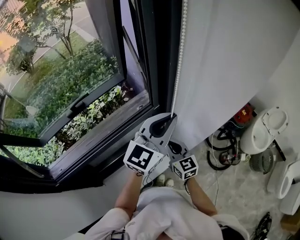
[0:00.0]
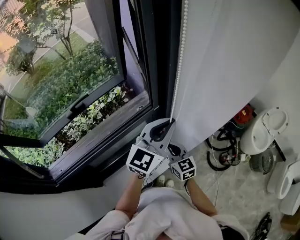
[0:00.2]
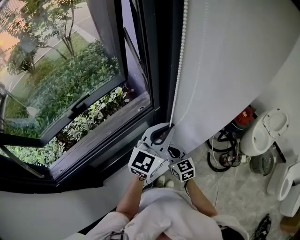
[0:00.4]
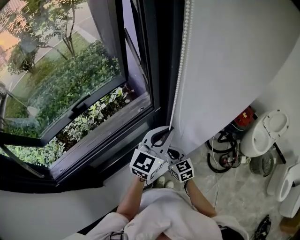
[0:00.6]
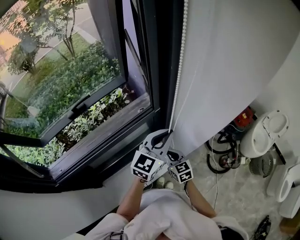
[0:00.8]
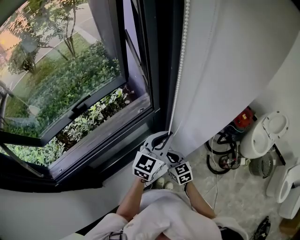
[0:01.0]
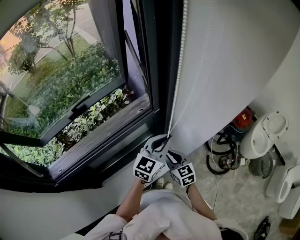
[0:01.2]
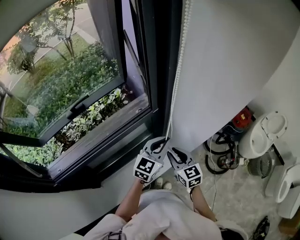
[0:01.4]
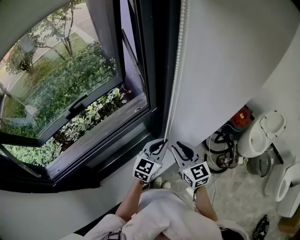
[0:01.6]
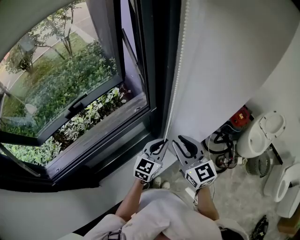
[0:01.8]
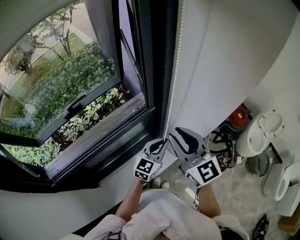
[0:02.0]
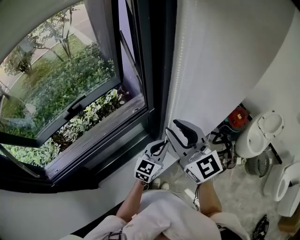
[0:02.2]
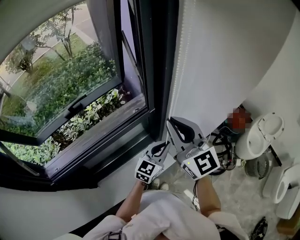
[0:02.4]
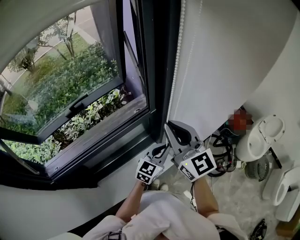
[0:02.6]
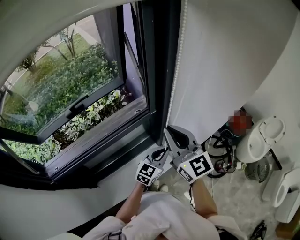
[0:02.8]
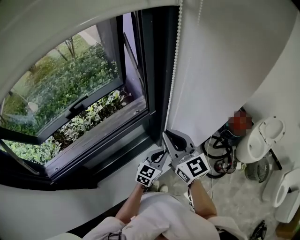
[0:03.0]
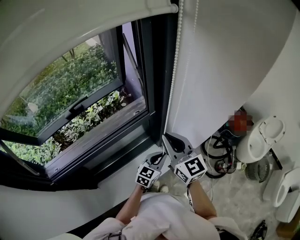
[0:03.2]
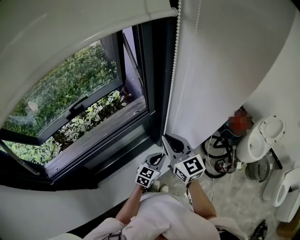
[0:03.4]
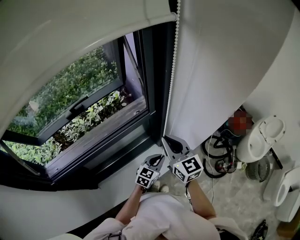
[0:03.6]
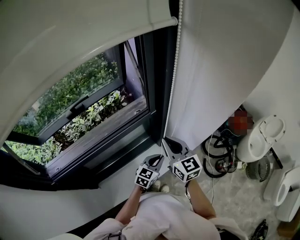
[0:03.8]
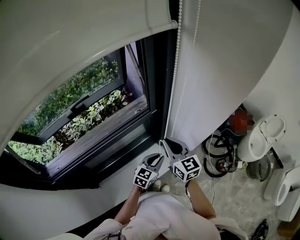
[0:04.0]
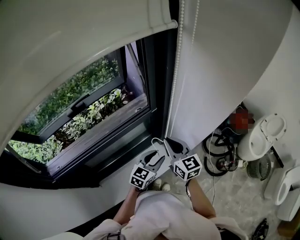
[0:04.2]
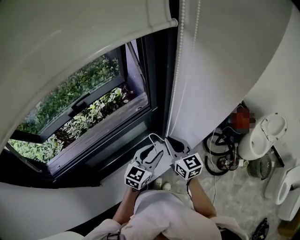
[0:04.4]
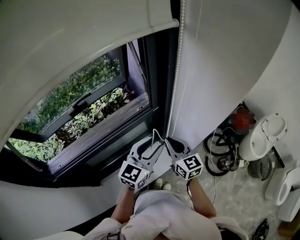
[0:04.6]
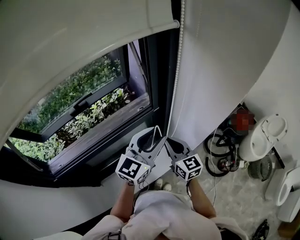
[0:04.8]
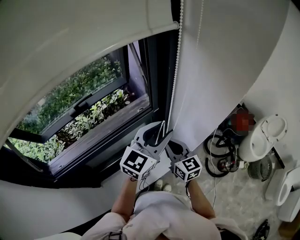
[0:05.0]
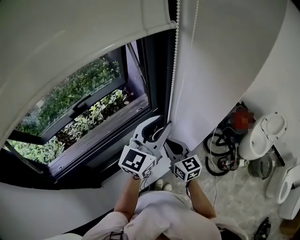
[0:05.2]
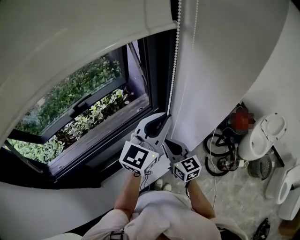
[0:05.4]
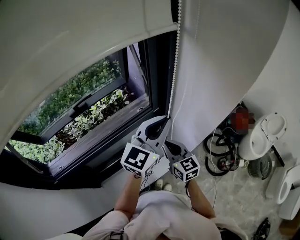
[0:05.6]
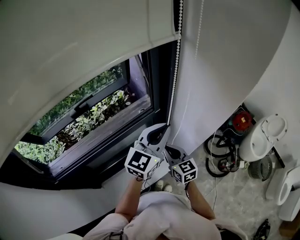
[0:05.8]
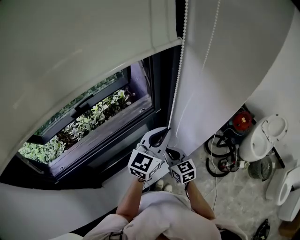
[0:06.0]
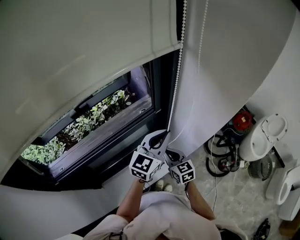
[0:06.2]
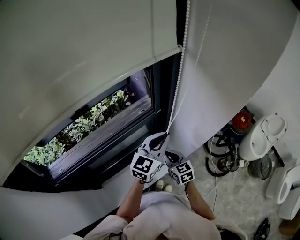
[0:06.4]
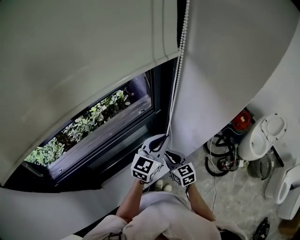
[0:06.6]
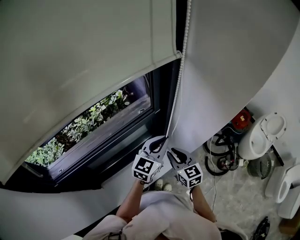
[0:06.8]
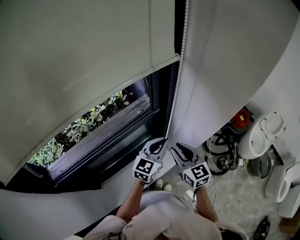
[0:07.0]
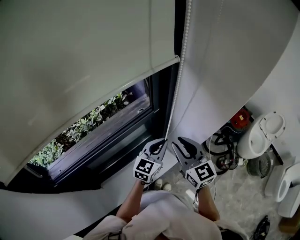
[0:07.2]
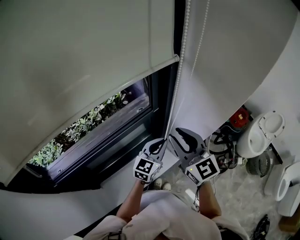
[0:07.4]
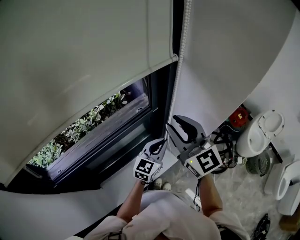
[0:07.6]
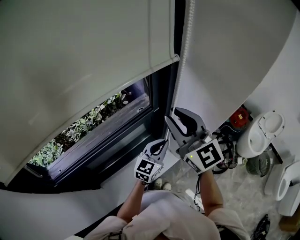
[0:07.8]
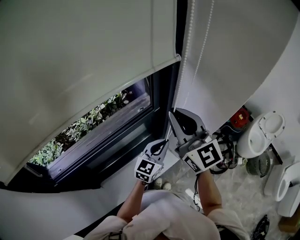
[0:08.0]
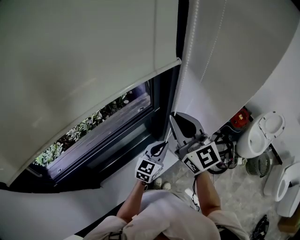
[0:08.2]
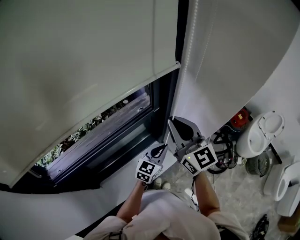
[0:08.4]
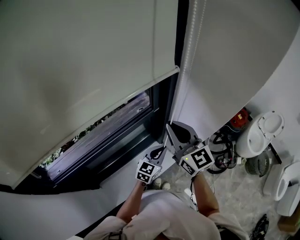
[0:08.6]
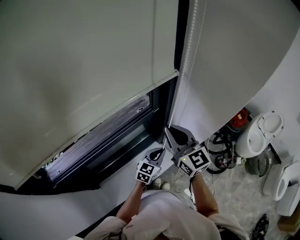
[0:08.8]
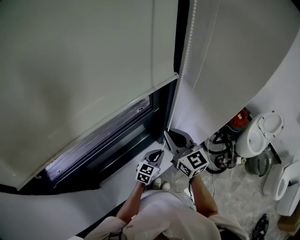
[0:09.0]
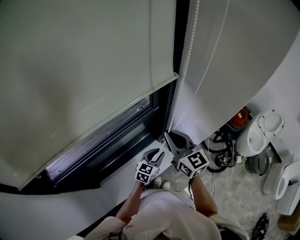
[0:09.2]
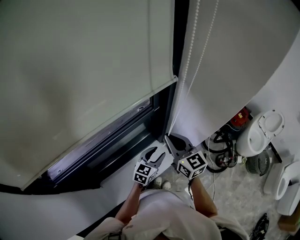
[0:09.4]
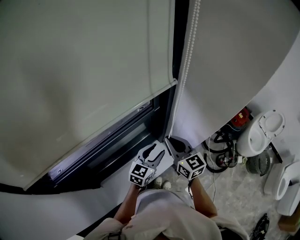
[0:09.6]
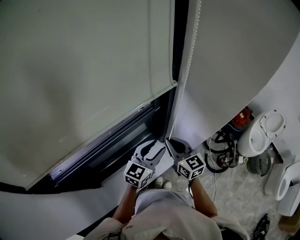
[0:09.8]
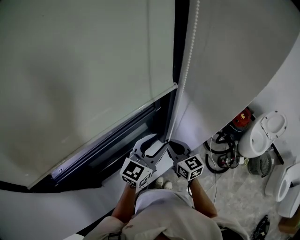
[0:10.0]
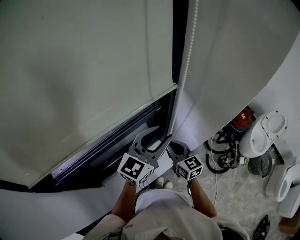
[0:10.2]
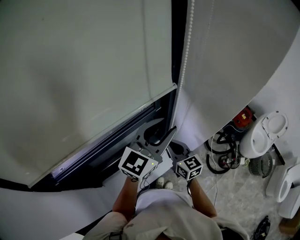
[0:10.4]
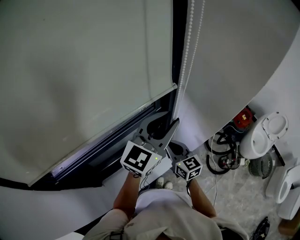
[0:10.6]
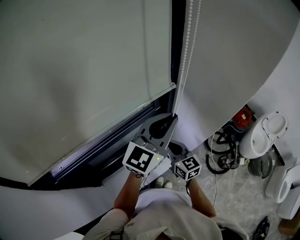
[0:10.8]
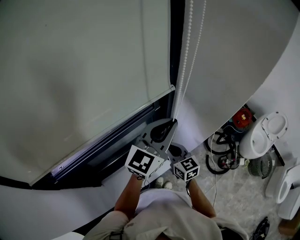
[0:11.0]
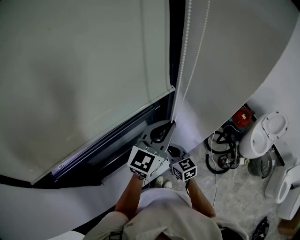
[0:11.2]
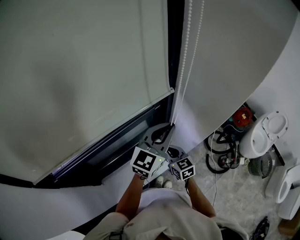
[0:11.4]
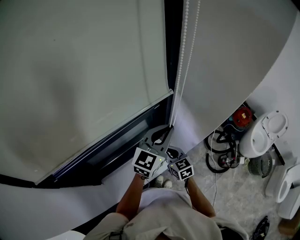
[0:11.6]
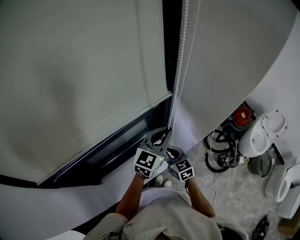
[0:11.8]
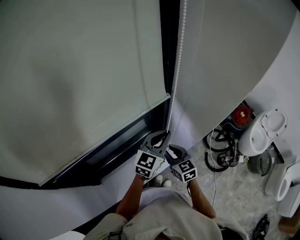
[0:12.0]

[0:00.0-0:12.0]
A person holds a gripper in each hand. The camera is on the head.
0:00.0 to 0:01.6: The right gripper goes some 5 cm to the right, goes downward and returns, approximately 10 cm each way, and opens. Meanwhile the left gripper shifts roughly 20 cm downward.
0:01.6 to 0:03.0: The right gripper goes approximately 10 cm upward, and closes. The left gripper moves downward, about 5 cm.
0:03.0 to 0:04.4: The left gripper moves upward, approximately 5 cm, and opens up. Meanwhile the right gripper shifts some 10 cm downward.
0:04.4 to 0:06.0: The left gripper moves upward and forward, some 15 cm, and closes up, while the right gripper goes some 10 cm downward.
0:06.0 to 0:07.6: The right gripper is displaced upward by approximately 25 cm, rotates some 30 degrees, and opens its fingers, while the left gripper is displaced downward by roughly 10 cm.
0:07.6 to 0:09.0: Both grippers travel together downward, about 10 cm. The right gripper closes its fingers.
0:09.0 to 0:10.4: The left gripper heads upward, covering about 30 cm, rotates roughly 30 degrees, and opens its fingers. Meanwhile the right gripper heads downward, covering approximately 10 cm.
0:10.4 to 0:12.0: The left gripper heads downward, covering approximately 10 cm, and closes its fingers. Meanwhile the right gripper moves downward, roughly 5 cm, and opens.

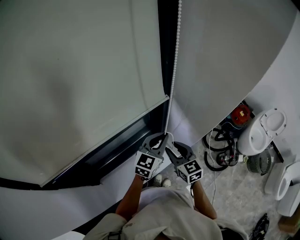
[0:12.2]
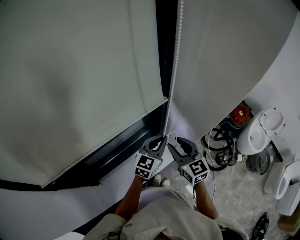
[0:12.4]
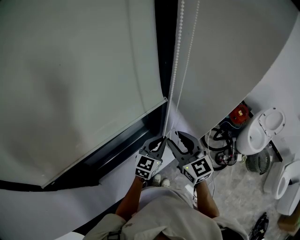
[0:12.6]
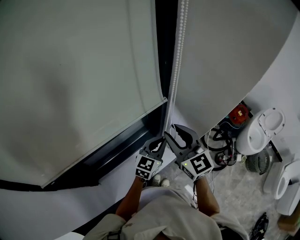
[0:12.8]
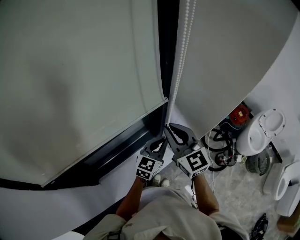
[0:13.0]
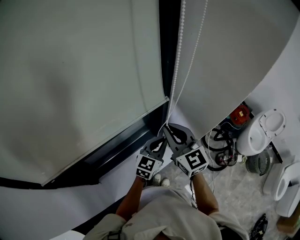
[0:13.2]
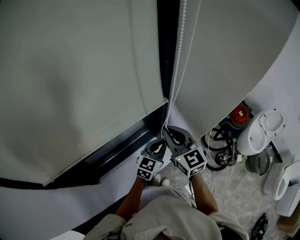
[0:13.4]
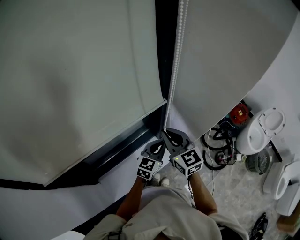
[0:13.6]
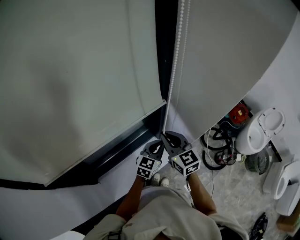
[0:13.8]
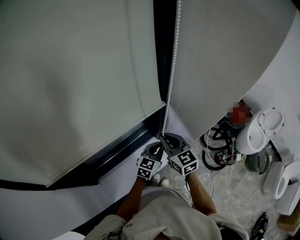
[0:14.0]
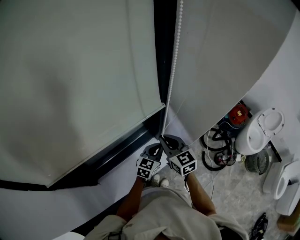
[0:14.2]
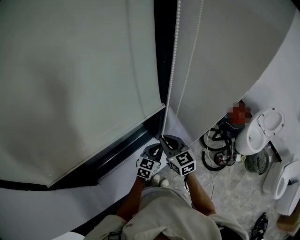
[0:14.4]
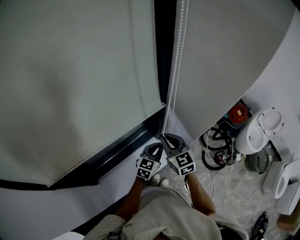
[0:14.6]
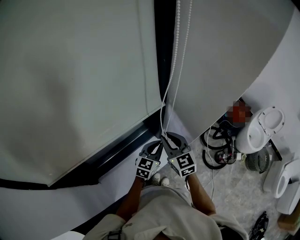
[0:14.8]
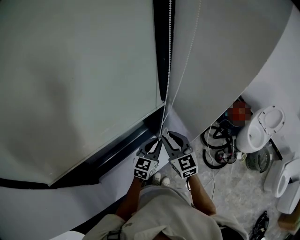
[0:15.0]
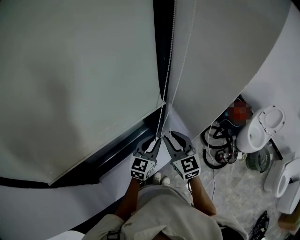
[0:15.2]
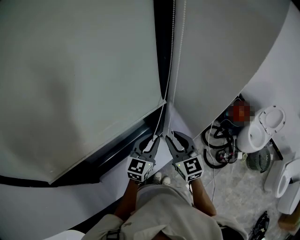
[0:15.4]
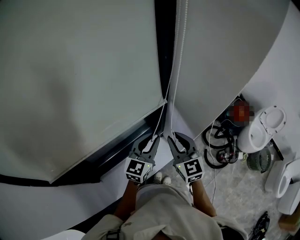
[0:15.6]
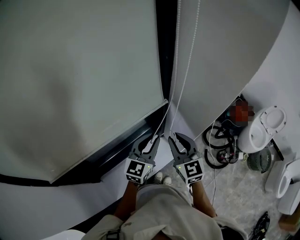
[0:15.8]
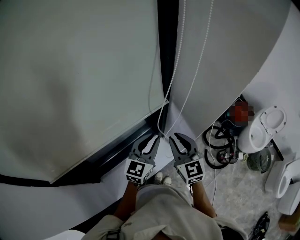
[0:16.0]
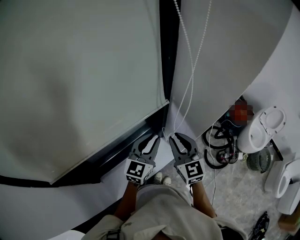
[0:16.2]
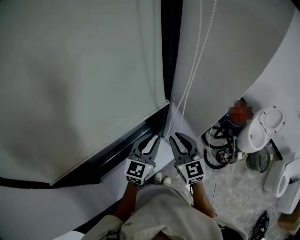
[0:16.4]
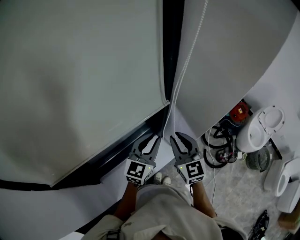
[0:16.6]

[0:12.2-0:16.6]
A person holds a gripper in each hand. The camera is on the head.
0:12.2 to 0:13.6: The left gripper goes about 5 cm downward. The right gripper shifts some 10 cm upward, and closes its fingers.
0:13.6 to 0:15.2: The left gripper reaches some 5 cm downward, then returns; the right gripper opens.
0:15.2 to 0:16.6: The left gripper moves upward, some 5 cm.

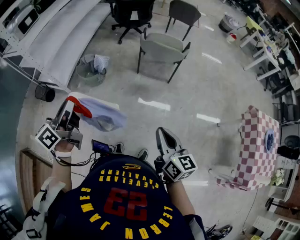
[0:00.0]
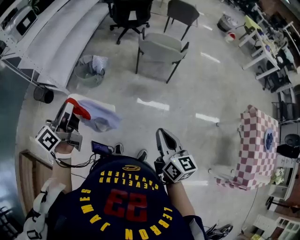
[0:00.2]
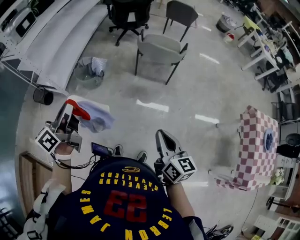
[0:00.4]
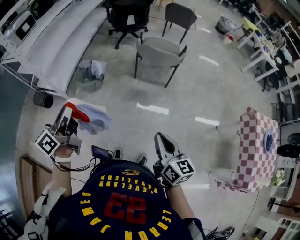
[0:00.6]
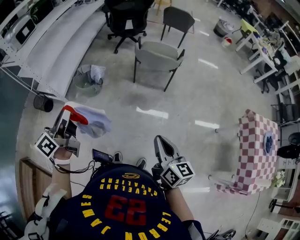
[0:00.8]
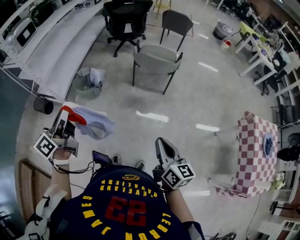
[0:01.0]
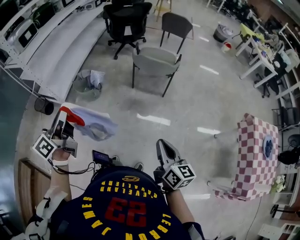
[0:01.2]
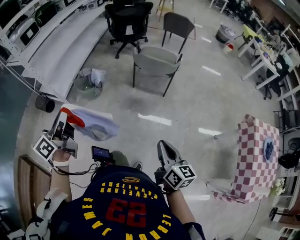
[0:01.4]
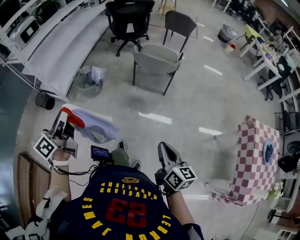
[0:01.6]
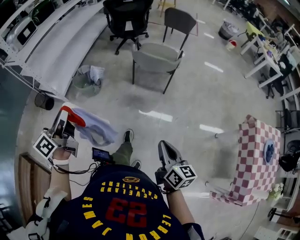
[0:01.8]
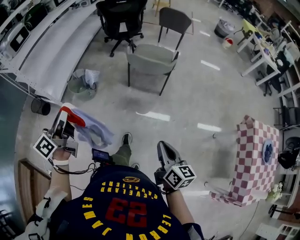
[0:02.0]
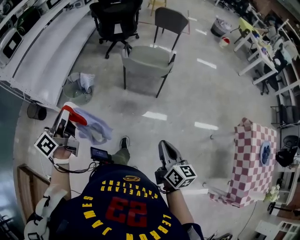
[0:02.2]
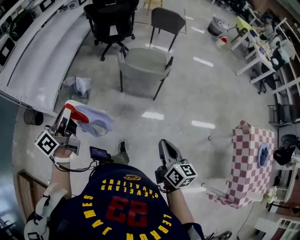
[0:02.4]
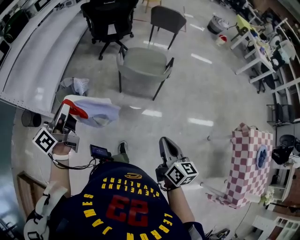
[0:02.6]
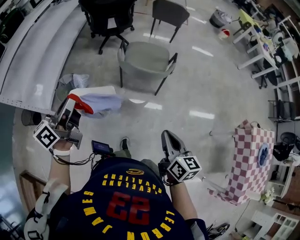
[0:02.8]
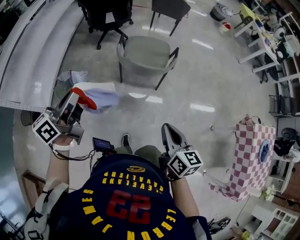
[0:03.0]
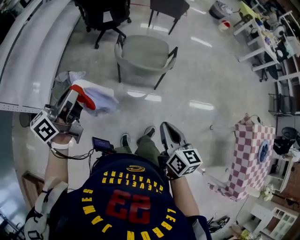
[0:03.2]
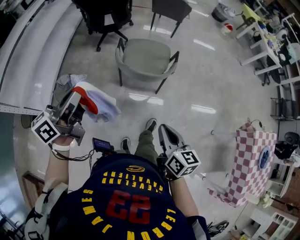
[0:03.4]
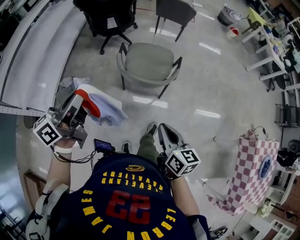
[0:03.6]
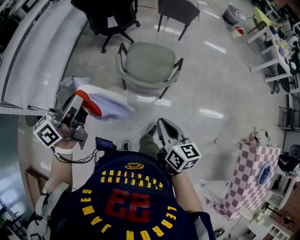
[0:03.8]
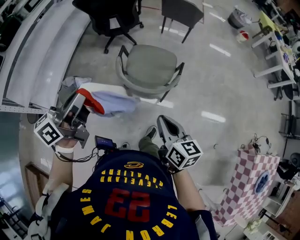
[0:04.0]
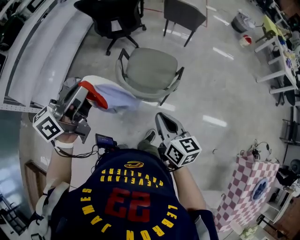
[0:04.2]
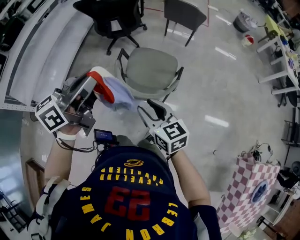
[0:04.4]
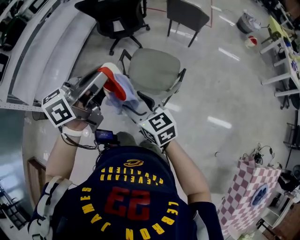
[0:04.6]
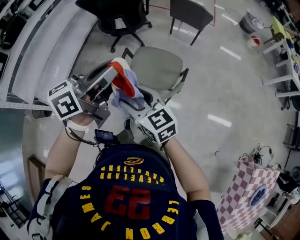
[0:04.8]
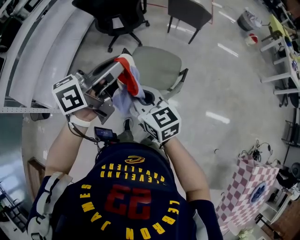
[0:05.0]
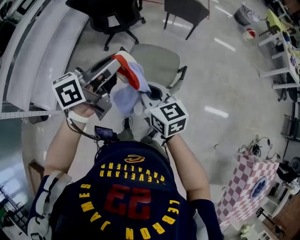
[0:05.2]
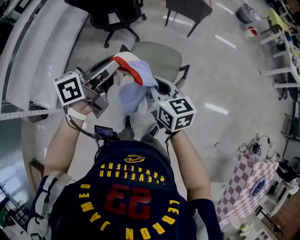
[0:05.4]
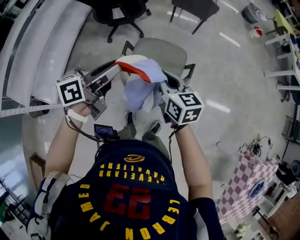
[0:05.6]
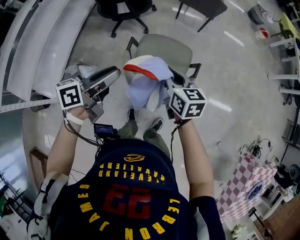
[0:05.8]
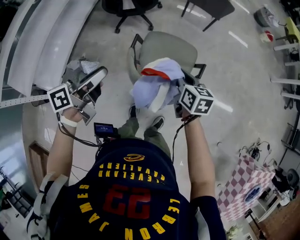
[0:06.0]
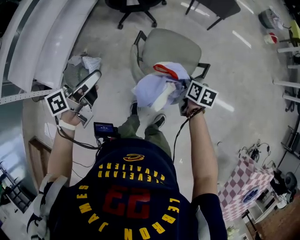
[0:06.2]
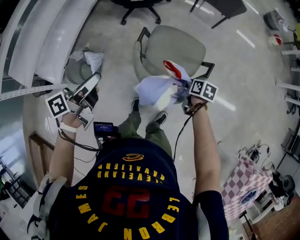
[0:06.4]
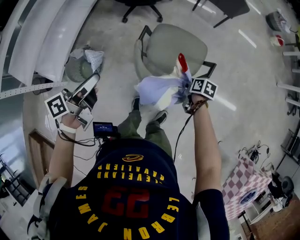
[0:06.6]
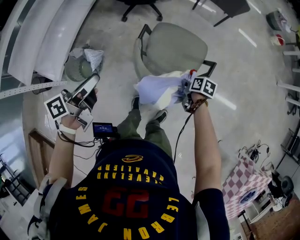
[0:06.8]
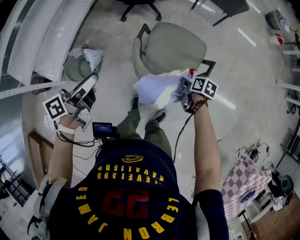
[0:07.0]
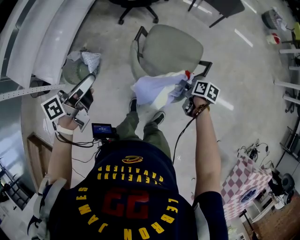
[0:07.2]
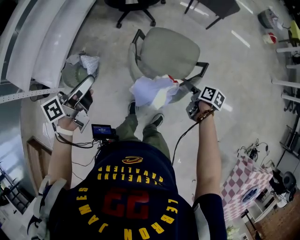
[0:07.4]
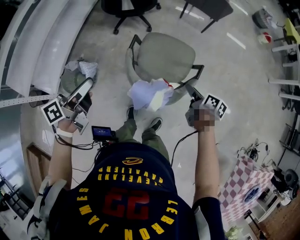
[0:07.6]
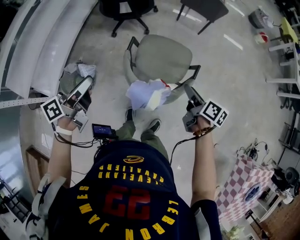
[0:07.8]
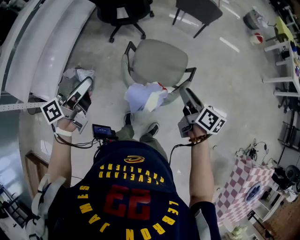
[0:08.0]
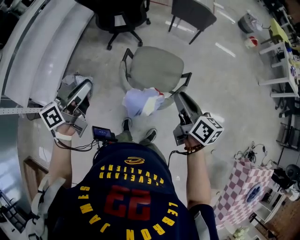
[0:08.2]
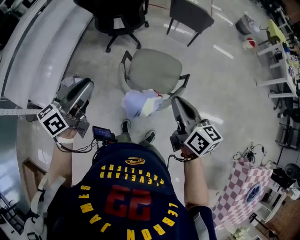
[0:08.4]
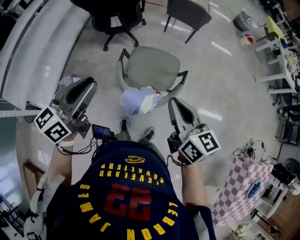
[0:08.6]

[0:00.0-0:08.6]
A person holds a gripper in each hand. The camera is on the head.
0:00.0 to 0:01.4: The right gripper goes roughly 10 cm to the right; the left gripper travels to the right by about 5 cm.
0:01.4 to 0:02.8: Both grippers travel together forward, roughly 30 cm.
0:02.8 to 0:04.4: The left gripper goes roughly 35 cm forward and to the right; the right gripper travels forward by approximately 30 cm, rotates about 30 degrees, and opens.
0:04.4 to 0:05.8: The right gripper heads forward, covering approximately 20 cm, and closes, while the left gripper shifts roughly 20 cm downward and forward, changes its angle by some 20 degrees, and opens up.
0:05.8 to 0:07.2: The left gripper goes approximately 10 cm to the left, and rotates approximately 20 degrees; the right gripper travels downward by roughly 25 cm, rotates roughly 50 degrees, and opens up.
0:07.2 to 0:08.6: The right gripper heads upward, covering some 35 cm, tips its fingers upward by roughly 40 degrees, and closes its fingers. The left gripper moves upward and to the right, roughly 20 cm, and swivels about 40 degrees.
